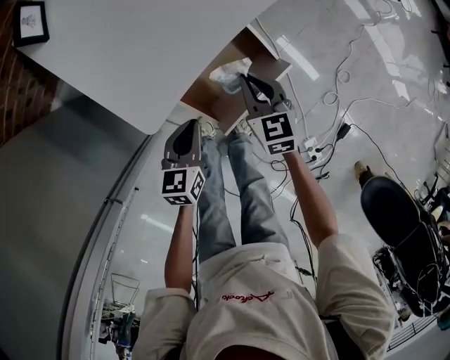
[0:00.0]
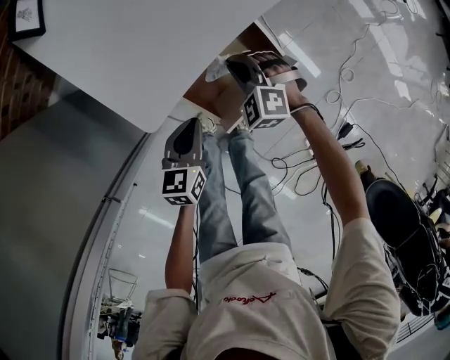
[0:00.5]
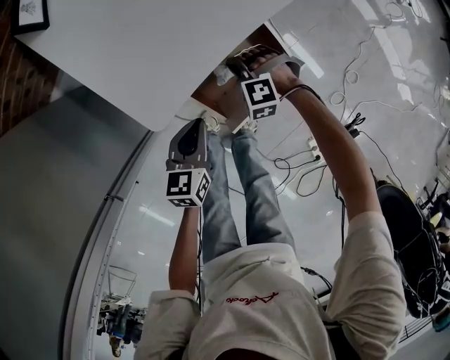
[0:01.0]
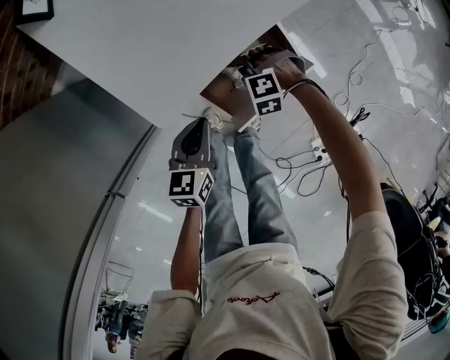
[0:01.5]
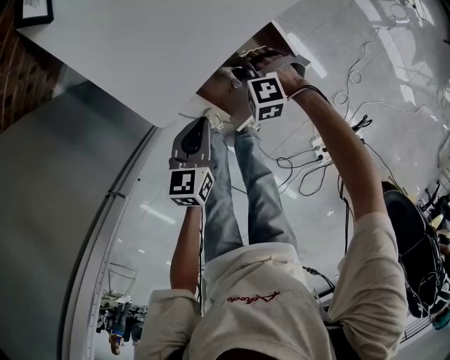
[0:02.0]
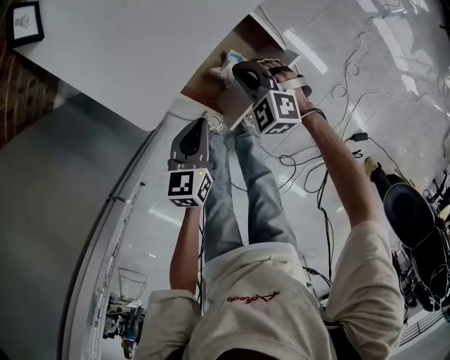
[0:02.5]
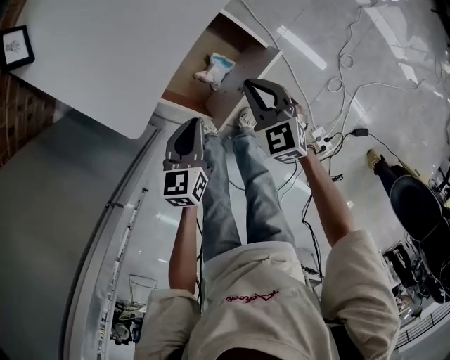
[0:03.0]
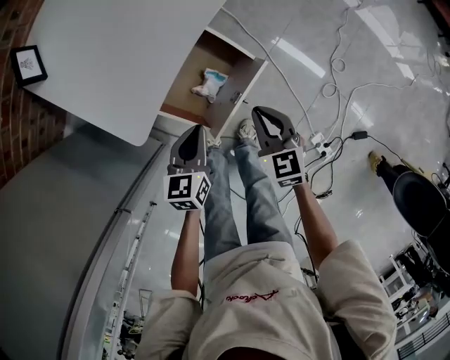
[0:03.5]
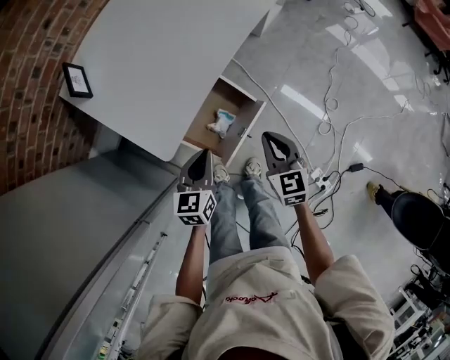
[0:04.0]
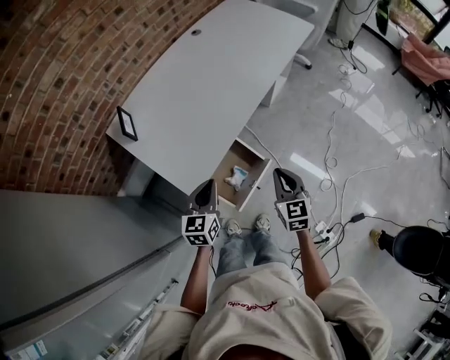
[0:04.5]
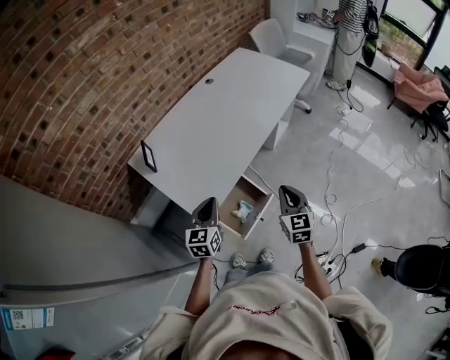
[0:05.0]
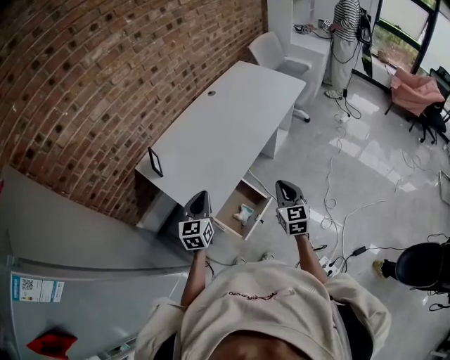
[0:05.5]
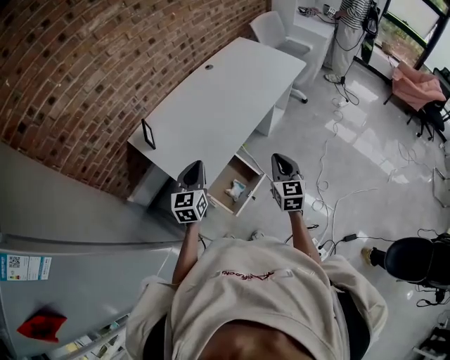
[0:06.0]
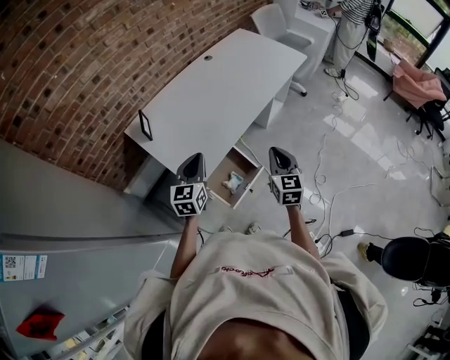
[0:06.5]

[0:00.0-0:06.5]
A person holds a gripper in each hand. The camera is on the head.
0:00.0 to 0:02.0: The right gripper heads downward, covering approximately 10 cm, and rotates around the line of its fingers by some 70 degrees, counterclockwise from behind.
0:02.0 to 0:04.5: Both grippers move upward, approximately 30 cm. The right gripper points its fingers some 40 degrees further upward. Meanwhile the left gripper rotates roughly 20 degrees.
0:04.5 to 0:06.5: The grippers both shift upward by approximately 15 cm.

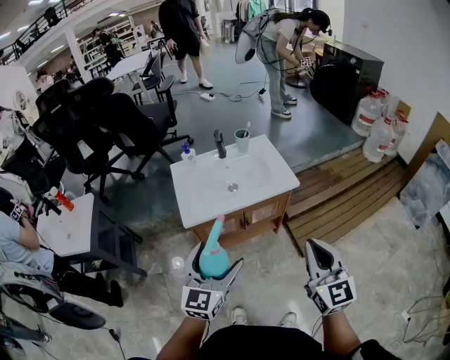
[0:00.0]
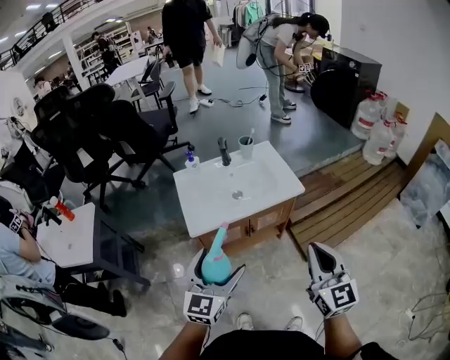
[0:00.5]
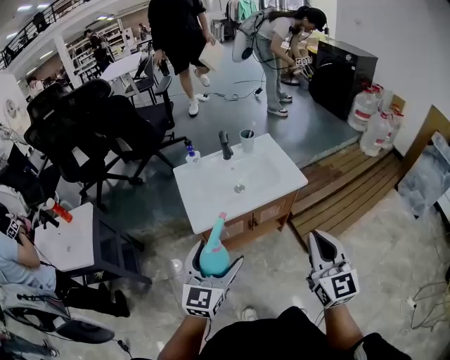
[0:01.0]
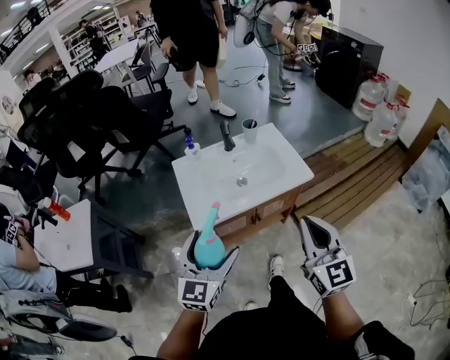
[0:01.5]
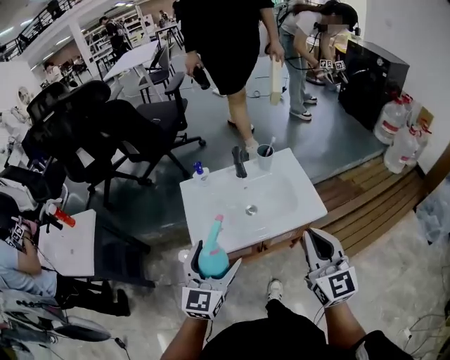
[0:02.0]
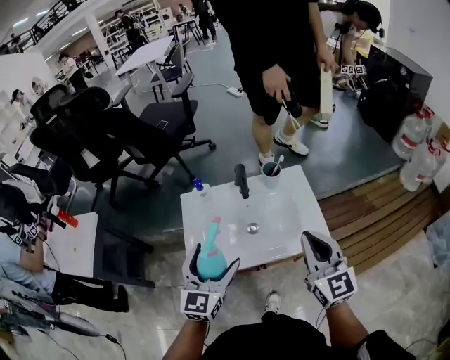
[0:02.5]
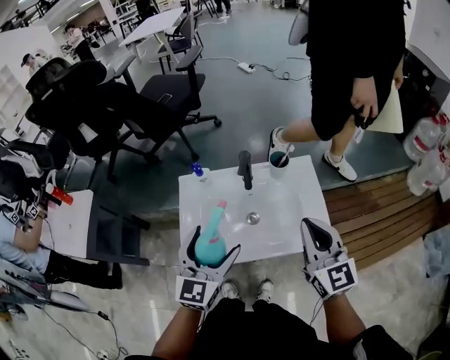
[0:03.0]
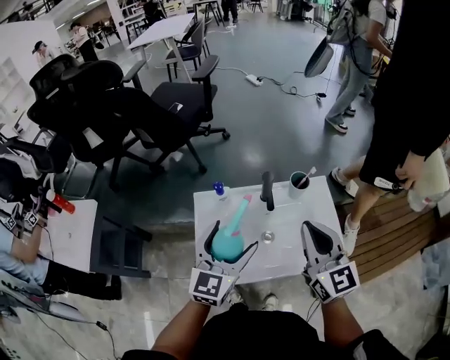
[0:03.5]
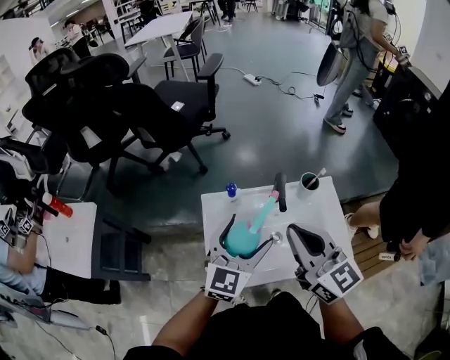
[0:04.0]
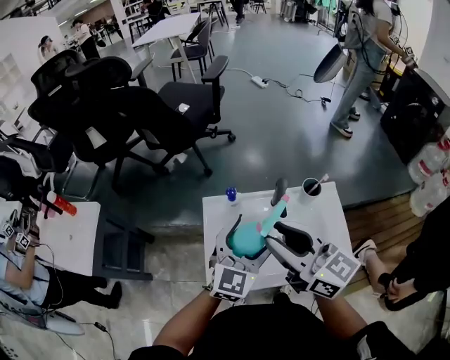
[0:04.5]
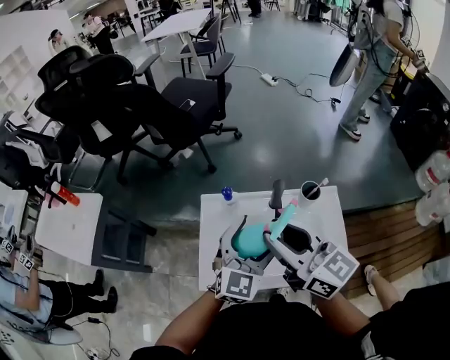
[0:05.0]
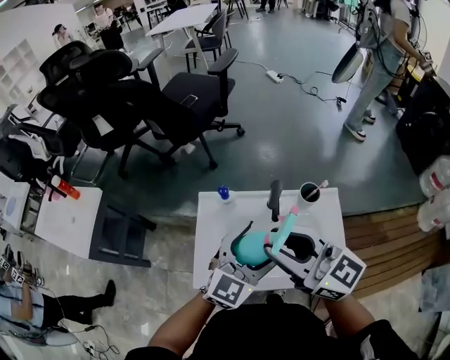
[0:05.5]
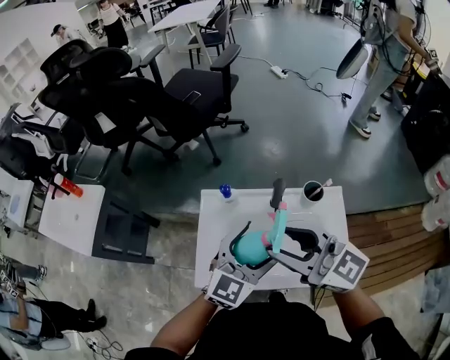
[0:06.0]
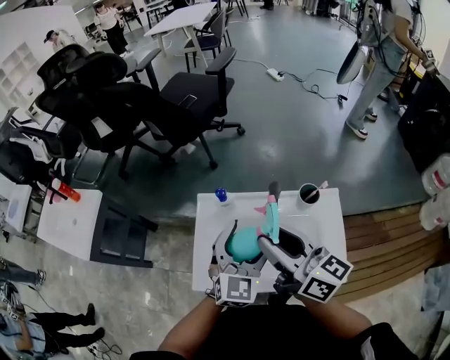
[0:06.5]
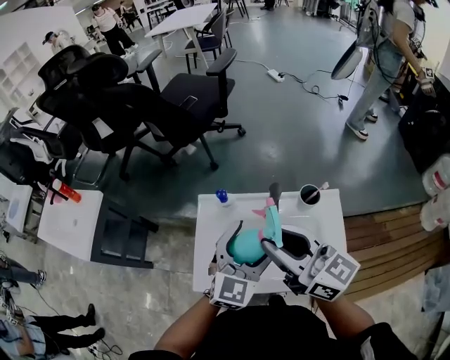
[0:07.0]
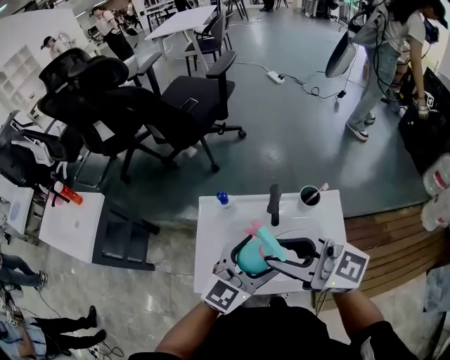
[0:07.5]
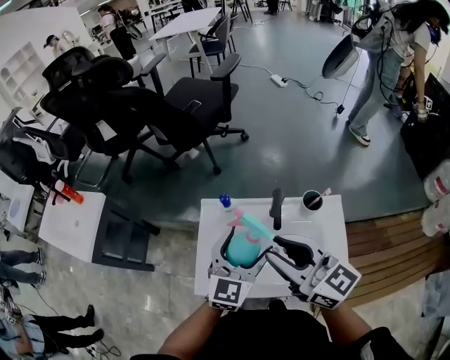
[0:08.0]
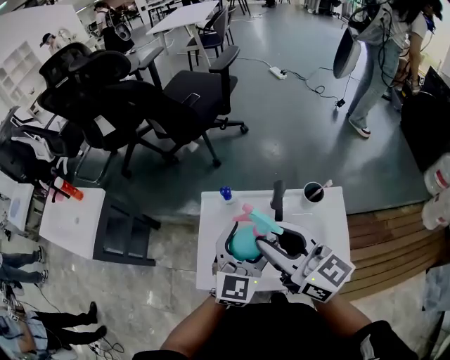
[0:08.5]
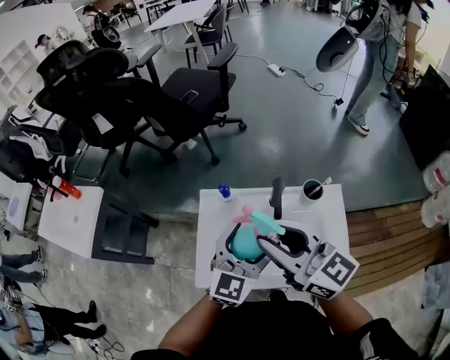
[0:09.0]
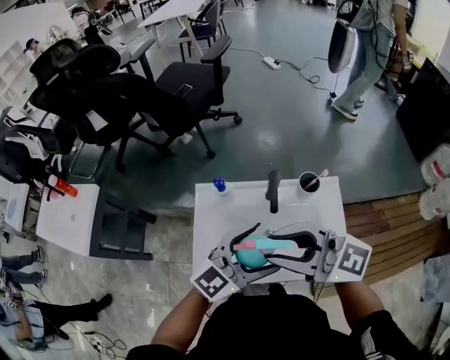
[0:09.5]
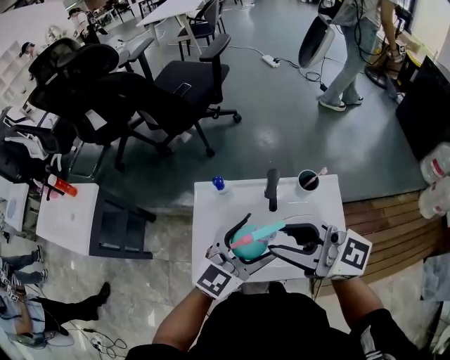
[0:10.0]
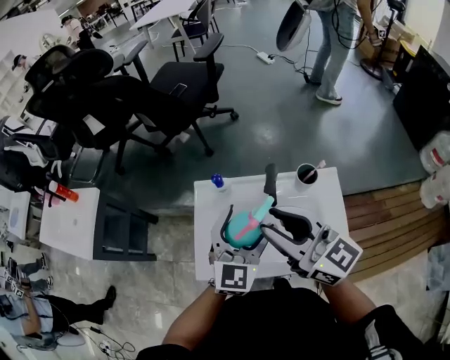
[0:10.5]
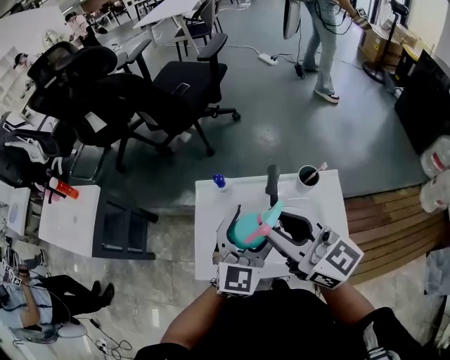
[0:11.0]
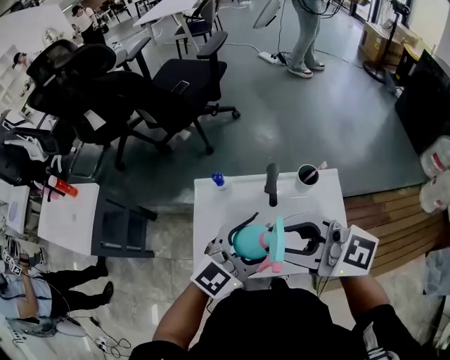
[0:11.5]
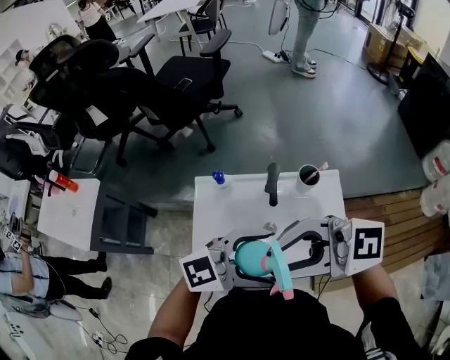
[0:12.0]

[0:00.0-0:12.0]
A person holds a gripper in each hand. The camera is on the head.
0:00.0 to 0:02.0: The right gripper moves forward, approximately 20 cm. The left gripper travels forward and to the left by about 20 cm.
0:02.0 to 0:04.0: The left gripper heads forward, covering about 25 cm. The right gripper is displaced forward and to the left by some 25 cm, and swivels some 30 degrees.
0:04.0 to 0:06.0: The right gripper turns by some 30 degrees, and opens; the left gripper moves to the right, approximately 10 cm.
0:08.0 to 0:10.0: The left gripper moves roughly 5 cm, and turns by some 20 degrees.
0:10.0 to 0:12.0: The left gripper ends up about 10 cm from where it was, and changes its angle by roughly 40 degrees. Meanwhile the right gripper changes place by about 5 cm, and swivels some 30 degrees.

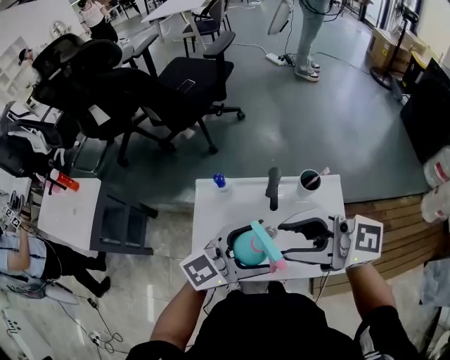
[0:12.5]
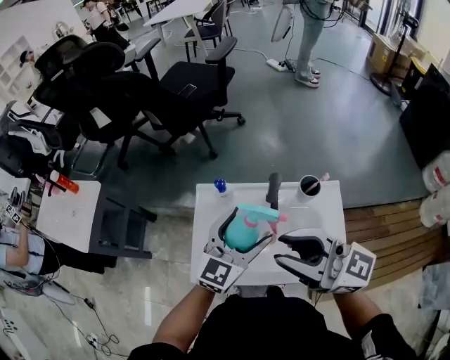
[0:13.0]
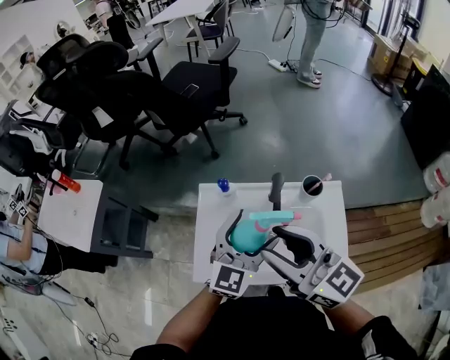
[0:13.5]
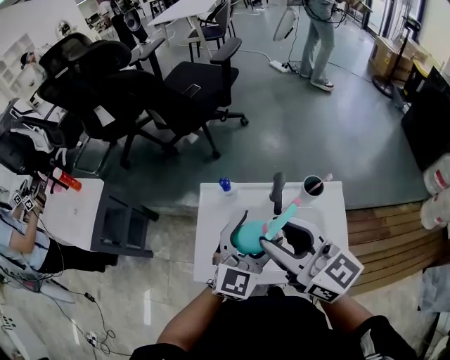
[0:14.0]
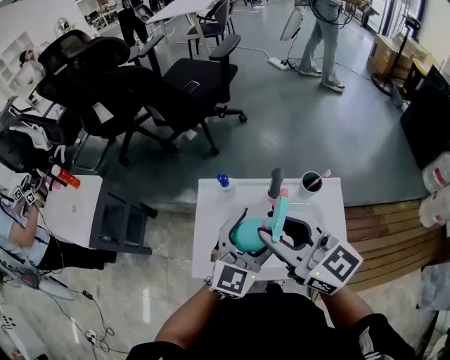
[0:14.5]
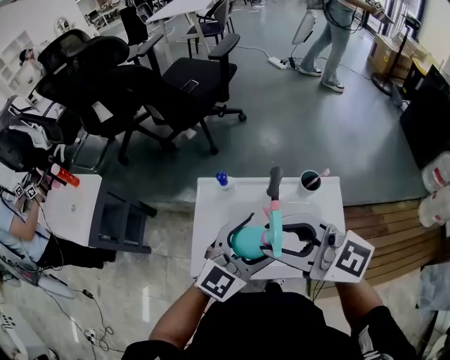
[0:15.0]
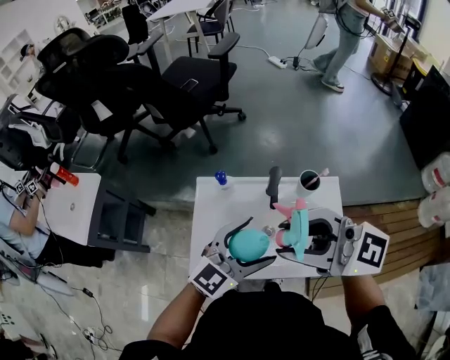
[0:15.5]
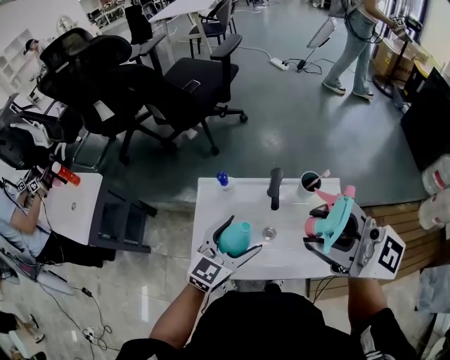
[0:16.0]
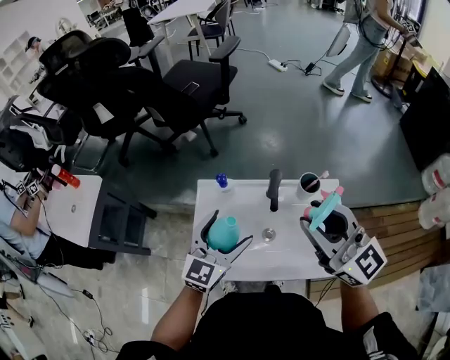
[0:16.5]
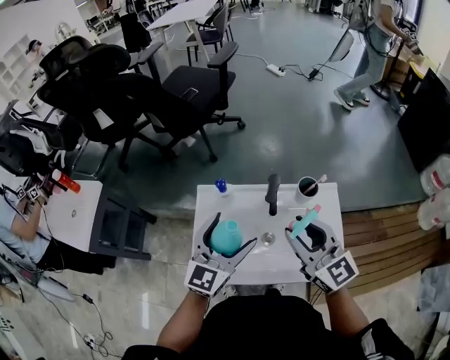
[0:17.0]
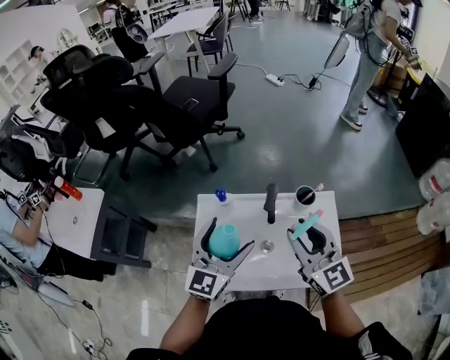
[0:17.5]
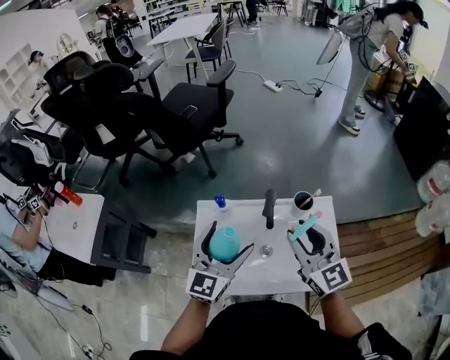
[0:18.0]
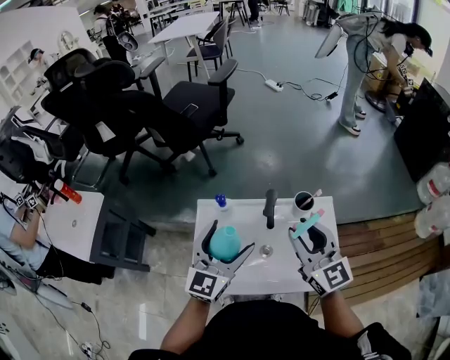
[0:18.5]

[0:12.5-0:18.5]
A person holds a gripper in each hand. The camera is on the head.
0:12.5 to 0:14.5: The left gripper rotates approximately 40 degrees; the right gripper moves some 5 cm, and turns by approximately 30 degrees.
0:14.5 to 0:16.5: The left gripper moves approximately 10 cm. Meanwhile the right gripper travels upward and back again, approximately 10 cm each way.
0:16.5 to 0:18.5: The left gripper shifts some 5 cm upward. Meanwhile the right gripper is displaced downward by some 5 cm.

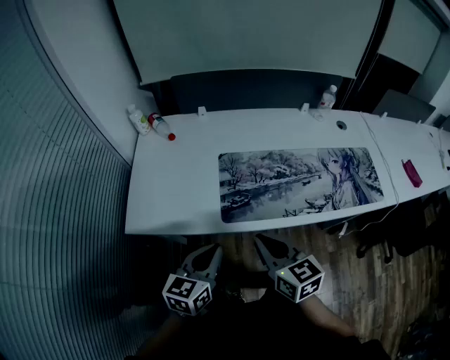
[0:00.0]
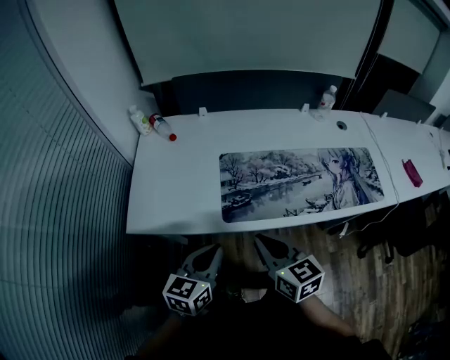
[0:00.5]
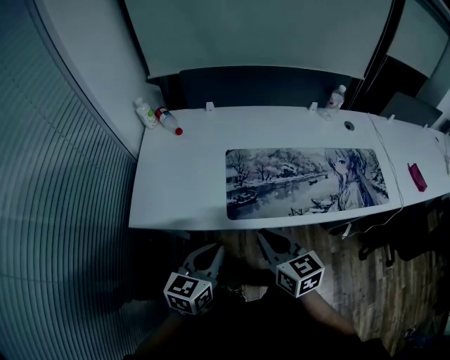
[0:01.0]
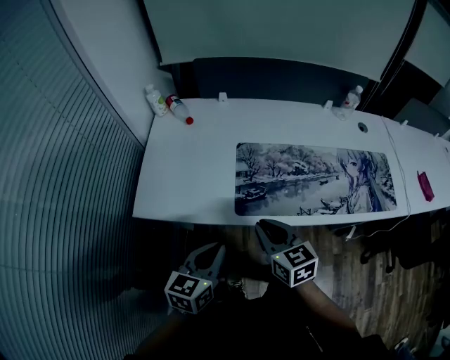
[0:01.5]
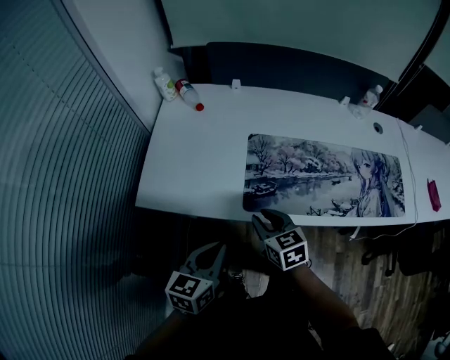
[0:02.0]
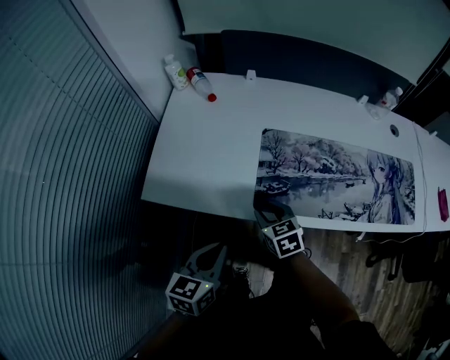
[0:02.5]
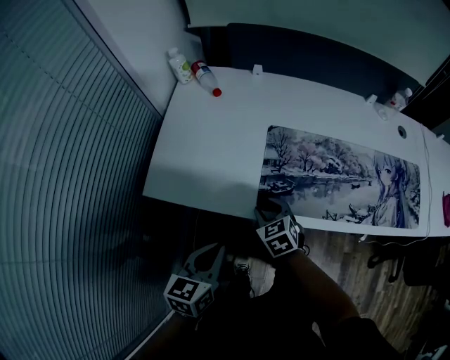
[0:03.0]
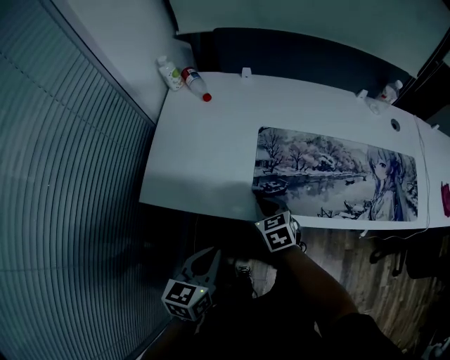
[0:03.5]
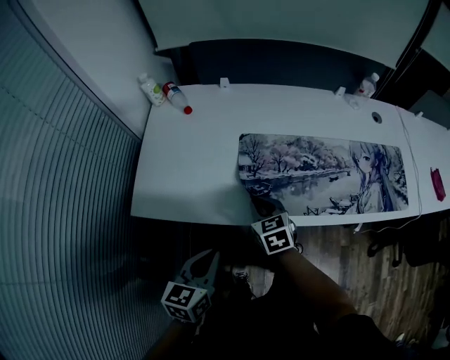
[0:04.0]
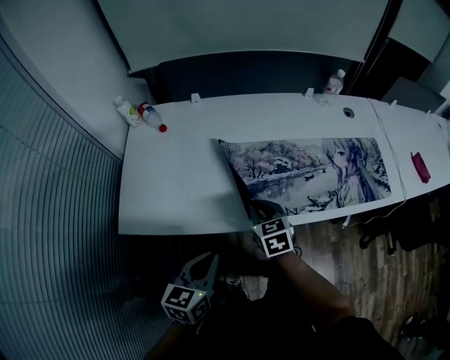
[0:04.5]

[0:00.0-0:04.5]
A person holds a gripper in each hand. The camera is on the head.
0:00.0 to 0:02.0: The right gripper moves downward and forward, approximately 15 cm; the left gripper ends up some 5 cm from where it was.
0:02.0 to 0:04.5: The right gripper is displaced to the right and forward by about 10 cm; the left gripper travels to the right by about 5 cm.
